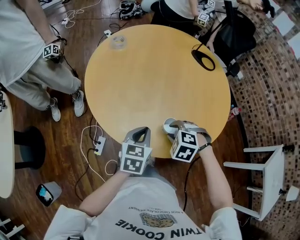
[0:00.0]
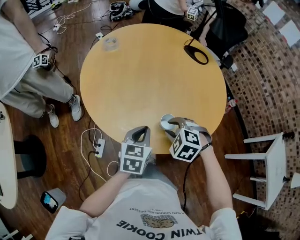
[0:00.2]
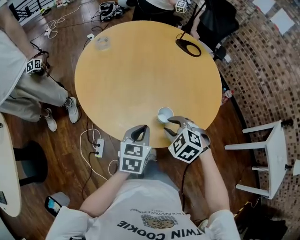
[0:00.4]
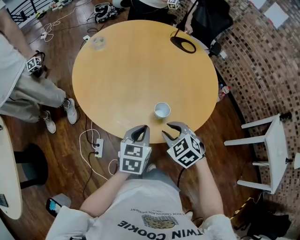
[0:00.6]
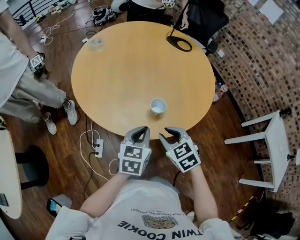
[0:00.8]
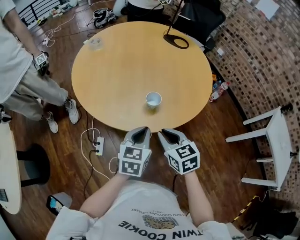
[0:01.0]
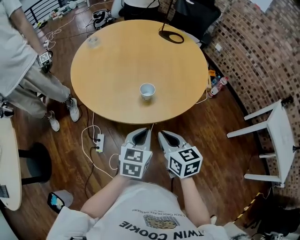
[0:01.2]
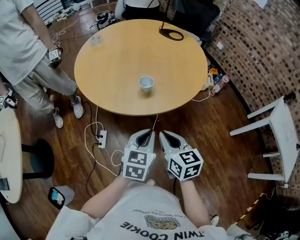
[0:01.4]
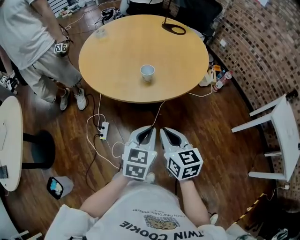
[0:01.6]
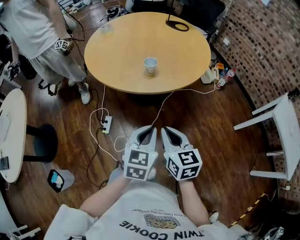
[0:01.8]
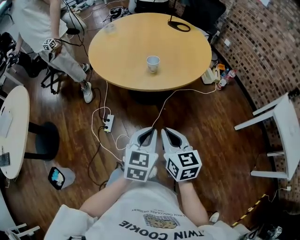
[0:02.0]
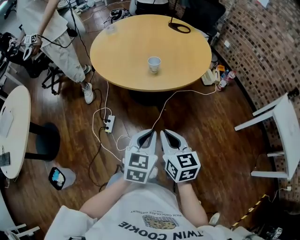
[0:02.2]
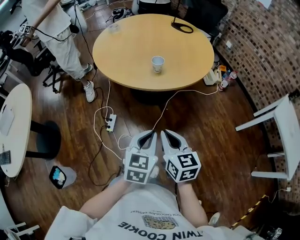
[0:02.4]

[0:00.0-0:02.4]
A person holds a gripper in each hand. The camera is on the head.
0:00.0 to 0:01.2: The left gripper shifts about 20 cm backward and to the right. Meanwhile the right gripper is displaced backward and upward by about 20 cm, twists some 70 degrees clockwise, seen from behind, and closes up.
0:01.2 to 0:02.4: The two grippers go some 20 cm backward.

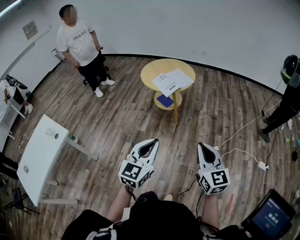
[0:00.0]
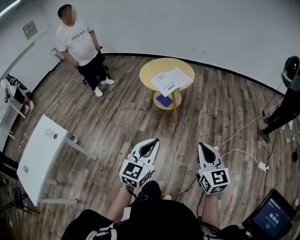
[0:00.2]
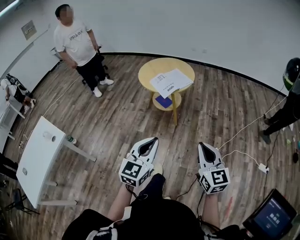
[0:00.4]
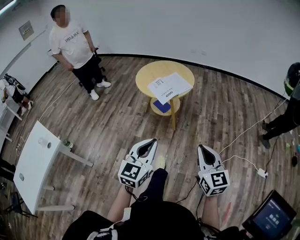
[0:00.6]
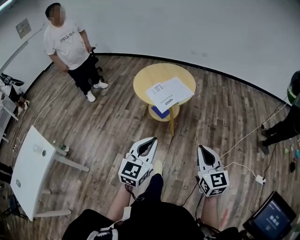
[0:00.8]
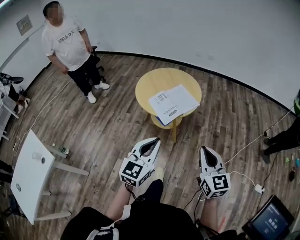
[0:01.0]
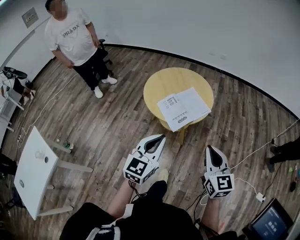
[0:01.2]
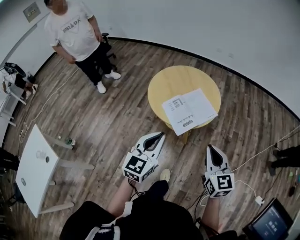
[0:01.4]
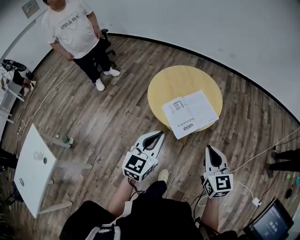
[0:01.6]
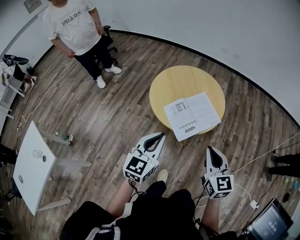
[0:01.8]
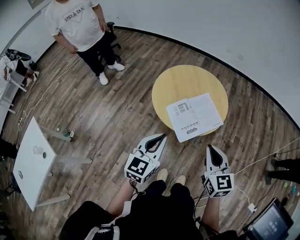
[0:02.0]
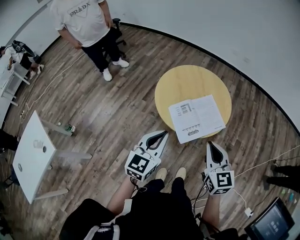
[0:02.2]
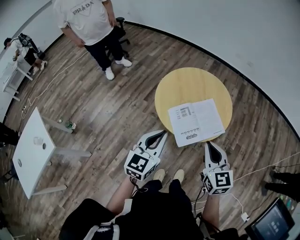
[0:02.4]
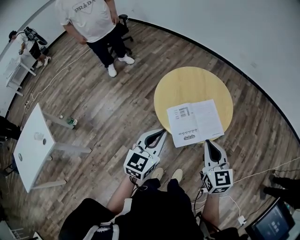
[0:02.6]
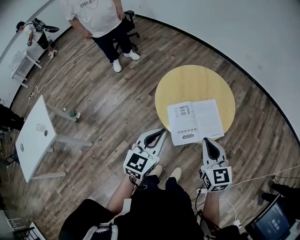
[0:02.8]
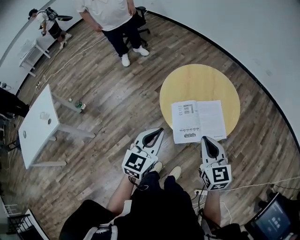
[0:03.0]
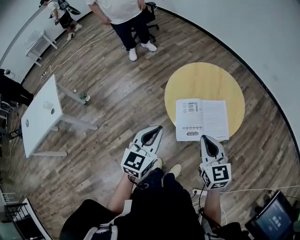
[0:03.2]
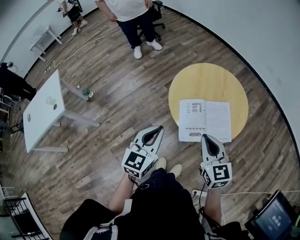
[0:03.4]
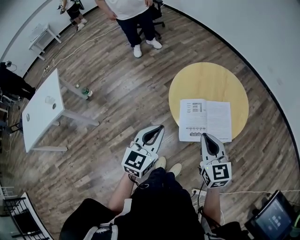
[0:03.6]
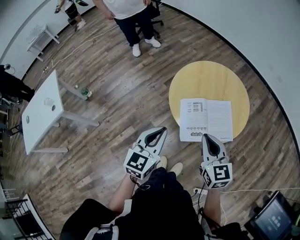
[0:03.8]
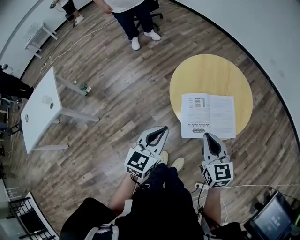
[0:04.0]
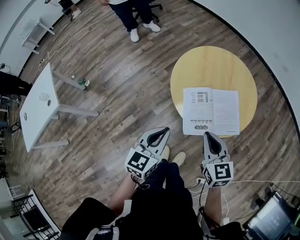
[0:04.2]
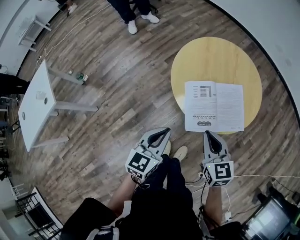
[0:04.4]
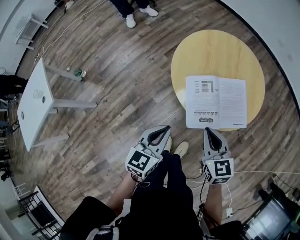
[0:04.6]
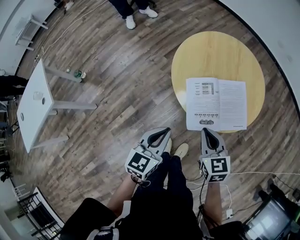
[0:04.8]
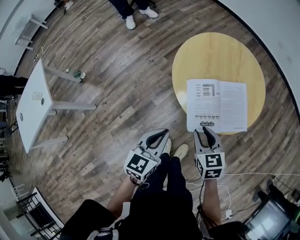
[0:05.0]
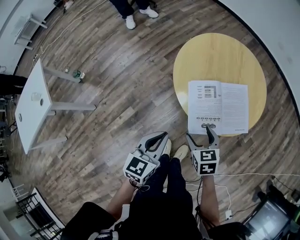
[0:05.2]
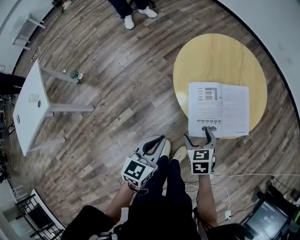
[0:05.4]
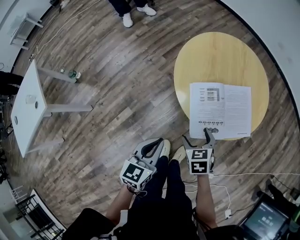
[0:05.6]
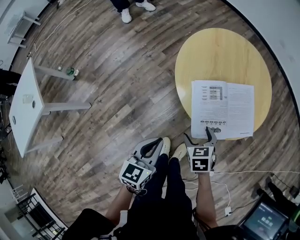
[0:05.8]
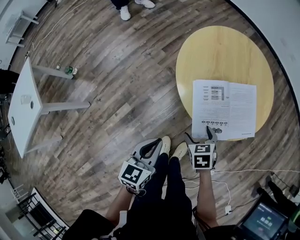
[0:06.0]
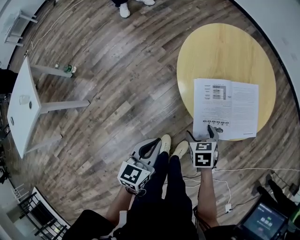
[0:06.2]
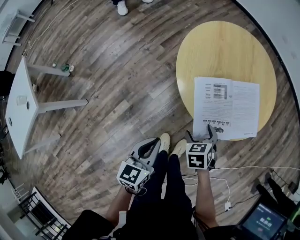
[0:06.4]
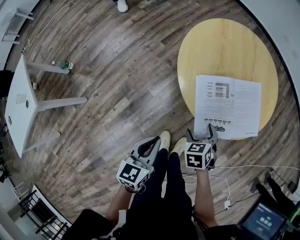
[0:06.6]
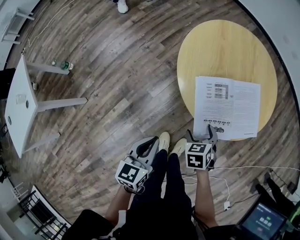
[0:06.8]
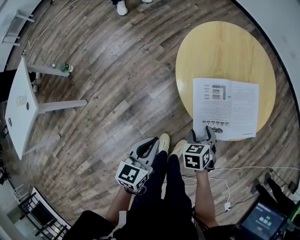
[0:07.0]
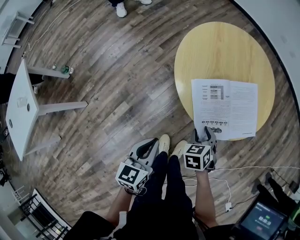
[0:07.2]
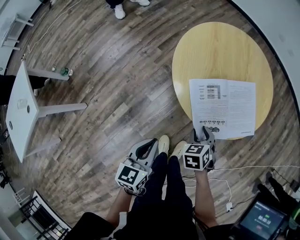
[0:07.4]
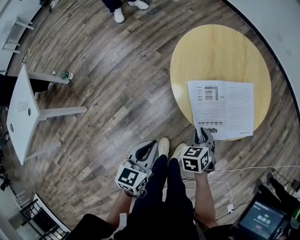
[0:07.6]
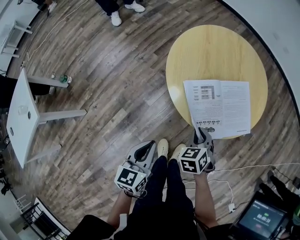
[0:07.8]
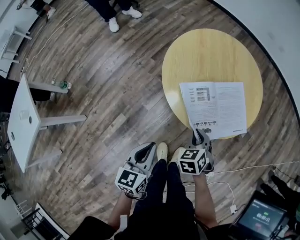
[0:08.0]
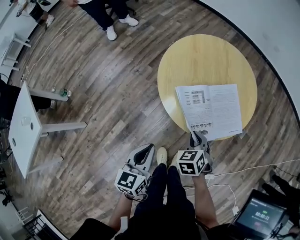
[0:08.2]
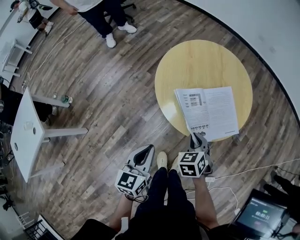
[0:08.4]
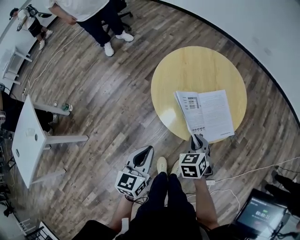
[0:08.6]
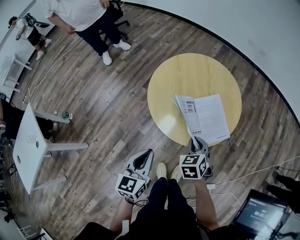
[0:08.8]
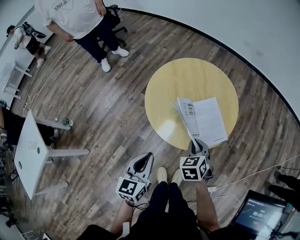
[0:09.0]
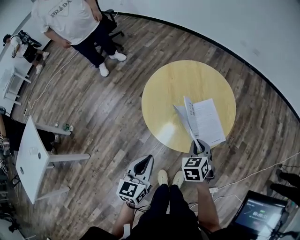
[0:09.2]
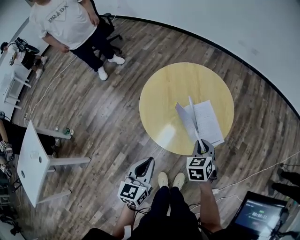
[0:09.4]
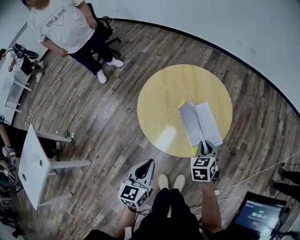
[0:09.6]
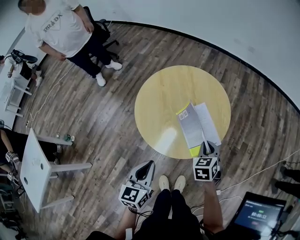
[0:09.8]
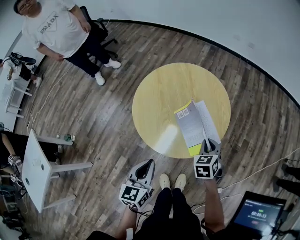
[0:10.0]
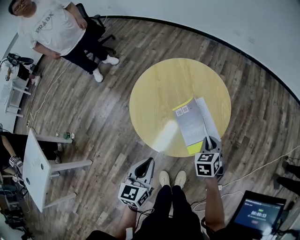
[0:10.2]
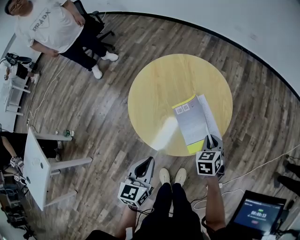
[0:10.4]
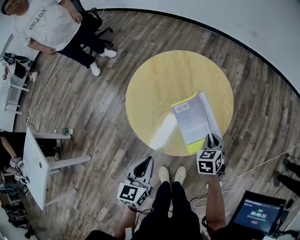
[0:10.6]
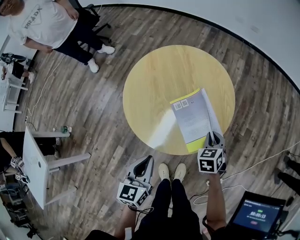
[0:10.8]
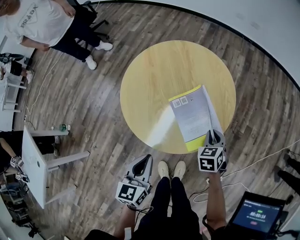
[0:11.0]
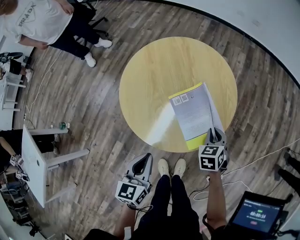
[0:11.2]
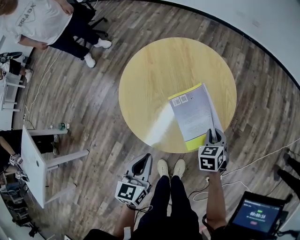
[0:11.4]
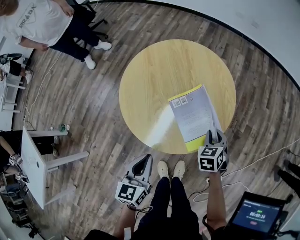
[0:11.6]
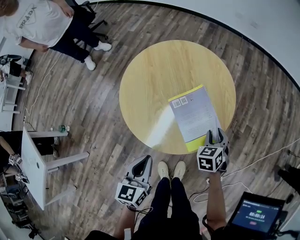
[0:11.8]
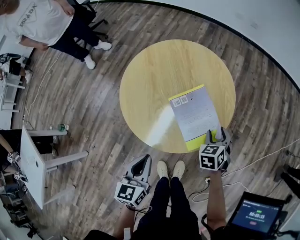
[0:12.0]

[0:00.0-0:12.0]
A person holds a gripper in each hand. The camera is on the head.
0:00.0 to 0:01.6: The two grippers travel together, forward, roughly 50 cm.
0:01.6 to 0:03.0: The right gripper goes about 15 cm forward, and changes its angle by some 30 degrees; the left gripper shifts roughly 5 cm forward, and swivels approximately 20 degrees.
0:03.0 to 0:04.4: Both grippers move downward, roughly 10 cm.
0:04.4 to 0:06.0: The left gripper is displaced downward and to the left by roughly 10 cm; the right gripper travels downward by some 20 cm, points its fingers approximately 30 degrees further downward, and opens.
0:06.0 to 0:07.6: The right gripper closes up.
0:07.6 to 0:09.0: Both grippers move upward and to the right, some 10 cm.
0:09.0 to 0:10.4: The left gripper travels to the right by roughly 5 cm. The right gripper moves to the right and forward, about 15 cm.
0:10.4 to 0:12.0: The right gripper moves downward, approximately 5 cm, and opens.

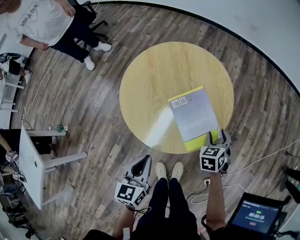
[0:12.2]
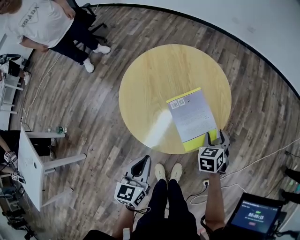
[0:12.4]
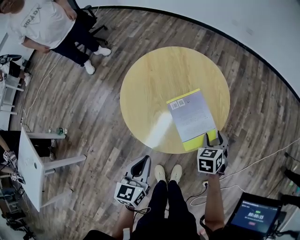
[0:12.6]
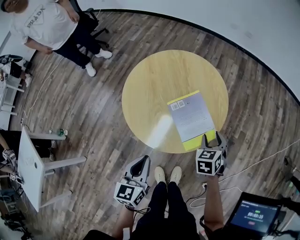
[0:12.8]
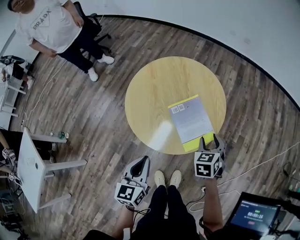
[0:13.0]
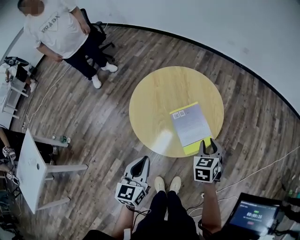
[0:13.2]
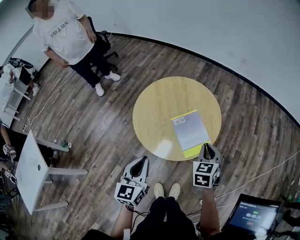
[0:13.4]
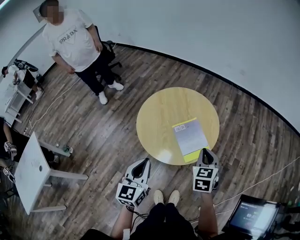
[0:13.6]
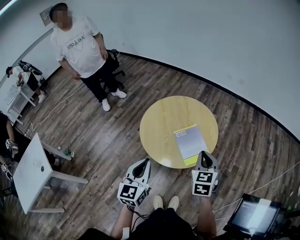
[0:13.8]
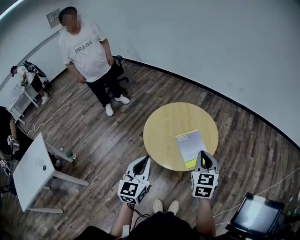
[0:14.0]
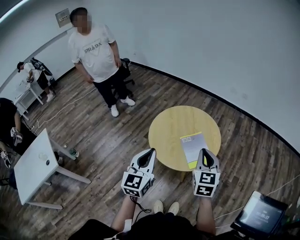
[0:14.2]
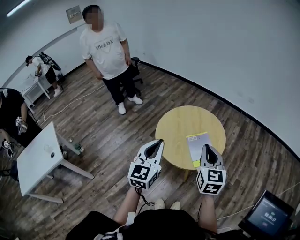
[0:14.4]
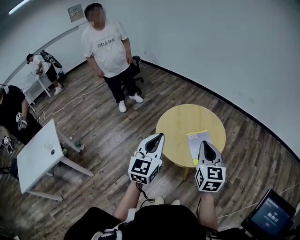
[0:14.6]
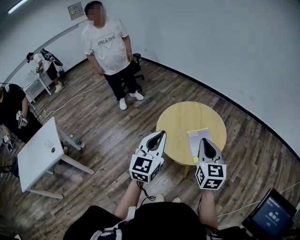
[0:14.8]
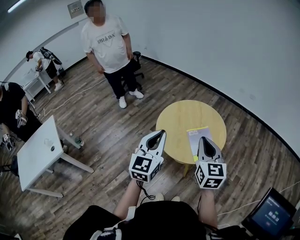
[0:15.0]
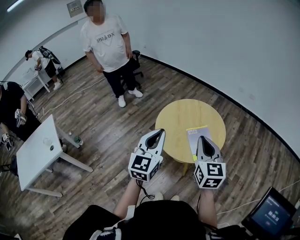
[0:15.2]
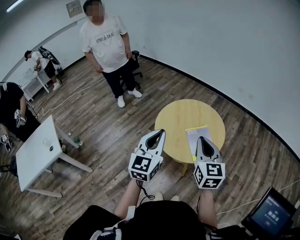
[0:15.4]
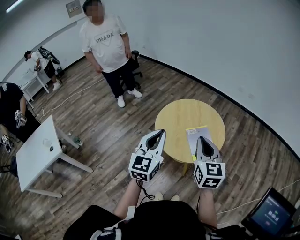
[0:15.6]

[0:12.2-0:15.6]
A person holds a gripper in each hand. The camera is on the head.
0:12.2 to 0:13.8: The grippers both shift upward by some 25 cm. The right gripper swivels approximately 30 degrees, and closes up. The left gripper swivels roughly 20 degrees.
0:13.8 to 0:15.6: The right gripper goes roughly 15 cm upward and to the left, and turns by some 30 degrees. Meanwhile the left gripper travels upward by some 10 cm.

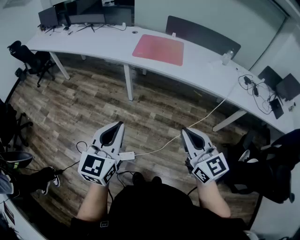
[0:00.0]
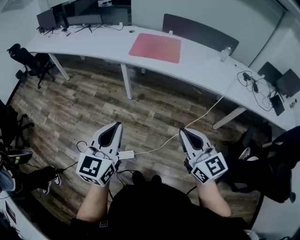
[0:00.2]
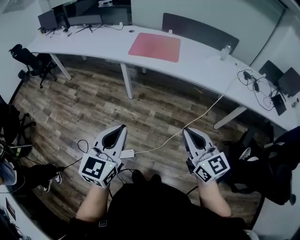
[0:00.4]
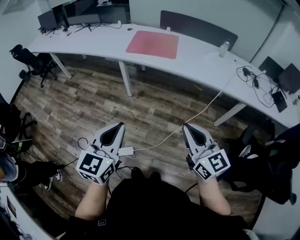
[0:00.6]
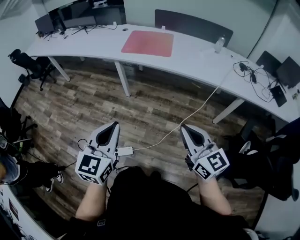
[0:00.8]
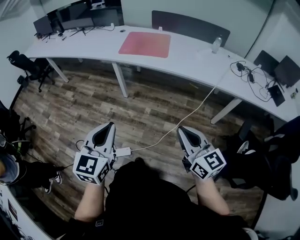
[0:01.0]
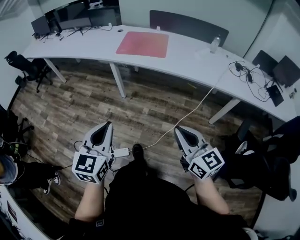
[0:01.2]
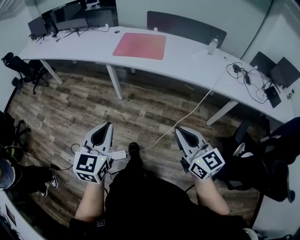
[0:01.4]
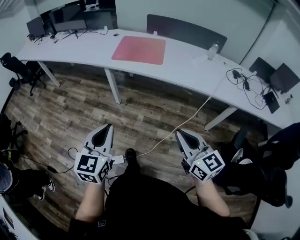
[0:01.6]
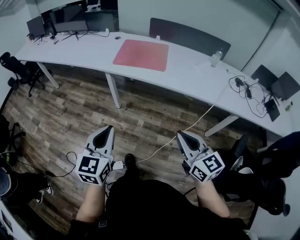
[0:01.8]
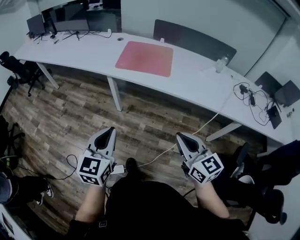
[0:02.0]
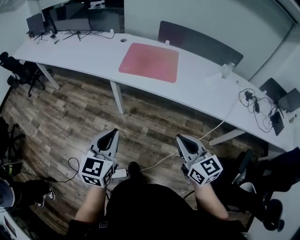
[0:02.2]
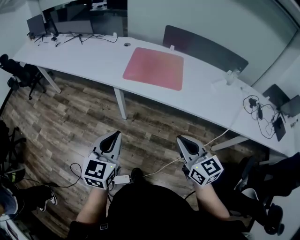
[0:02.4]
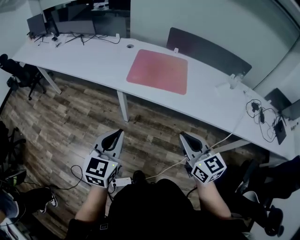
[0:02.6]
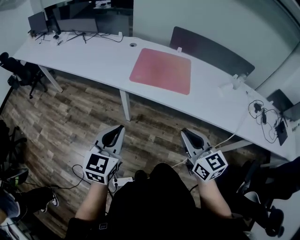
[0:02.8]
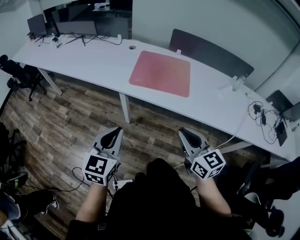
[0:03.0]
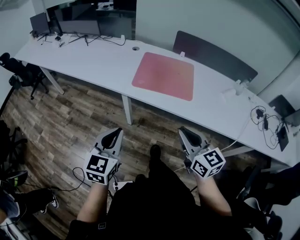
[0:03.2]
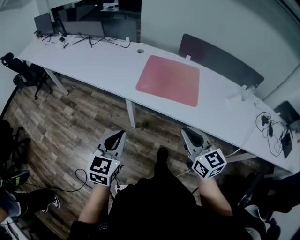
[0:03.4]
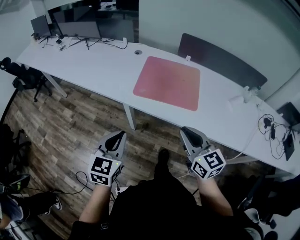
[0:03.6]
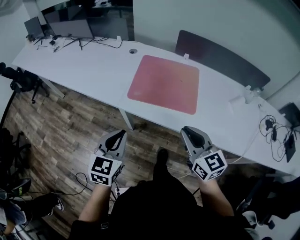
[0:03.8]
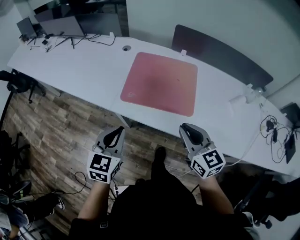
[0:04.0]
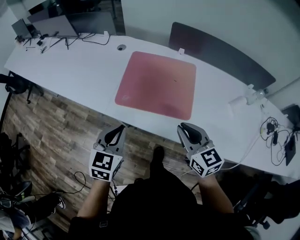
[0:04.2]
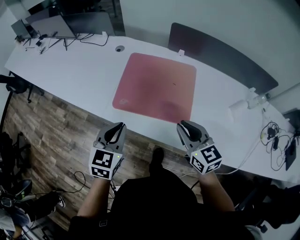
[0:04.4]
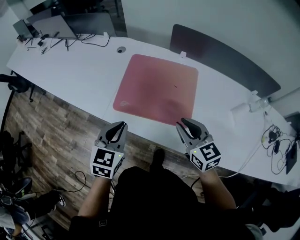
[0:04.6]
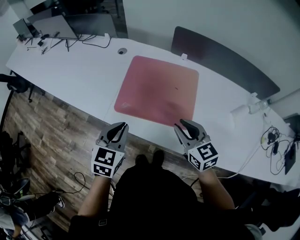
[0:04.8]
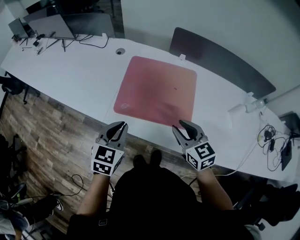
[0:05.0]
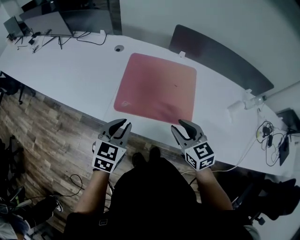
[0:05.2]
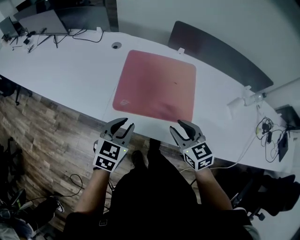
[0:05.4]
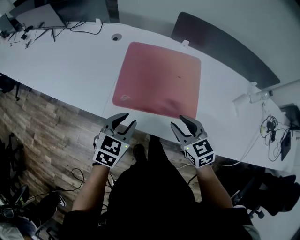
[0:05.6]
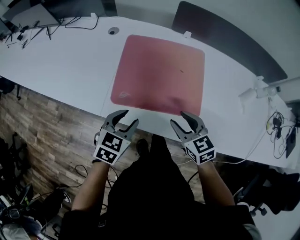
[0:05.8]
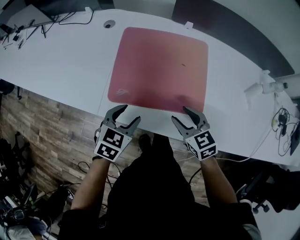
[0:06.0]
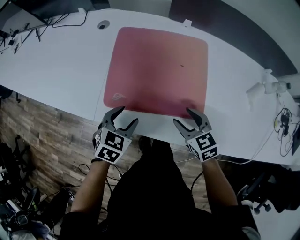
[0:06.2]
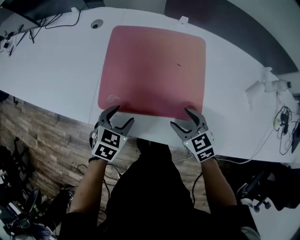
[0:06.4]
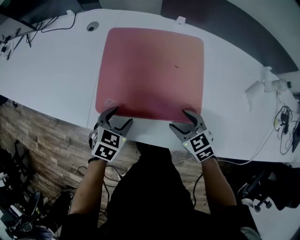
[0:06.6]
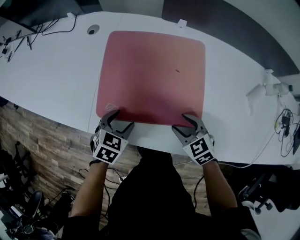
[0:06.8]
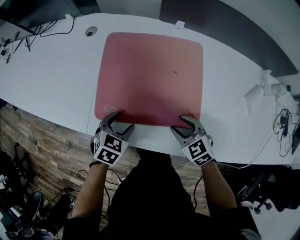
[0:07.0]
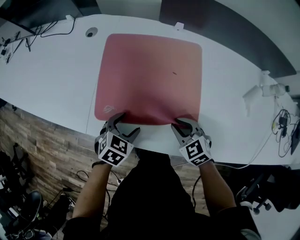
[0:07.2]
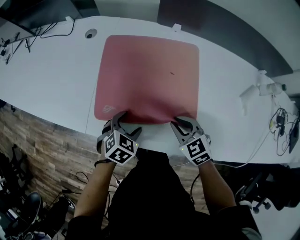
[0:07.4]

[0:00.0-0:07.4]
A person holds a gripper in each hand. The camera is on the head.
0:00.0 to 0:01.4: The grippers both shift to the right by about 10 cm.
0:01.4 to 0:03.0: Both grippers travel together forward, approximately 35 cm.
0:03.0 to 0:04.4: Both grippers move forward and to the right, about 35 cm.
0:04.4 to 0:06.0: The right gripper is displaced downward by roughly 15 cm, and opens its fingers. The left gripper heads downward and forward, covering roughly 15 cm, turns by roughly 20 degrees, and opens its fingers.
0:06.0 to 0:07.4: The left gripper travels downward and to the right by approximately 10 cm. Meanwhile the right gripper heads downward, covering approximately 5 cm, and closes its fingers.
